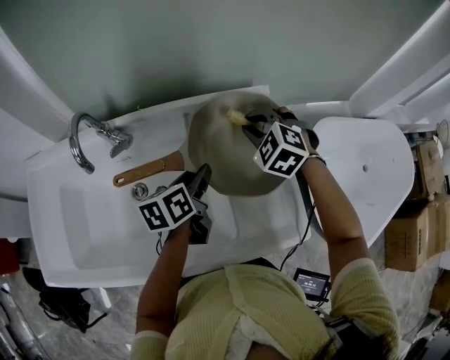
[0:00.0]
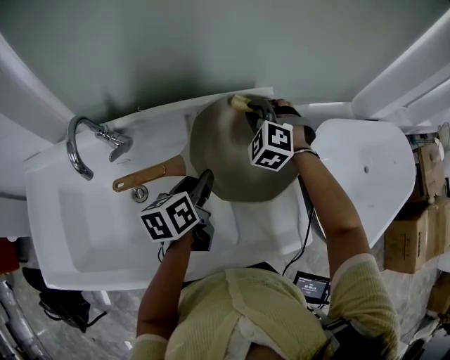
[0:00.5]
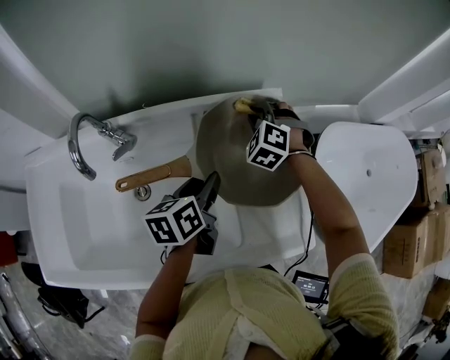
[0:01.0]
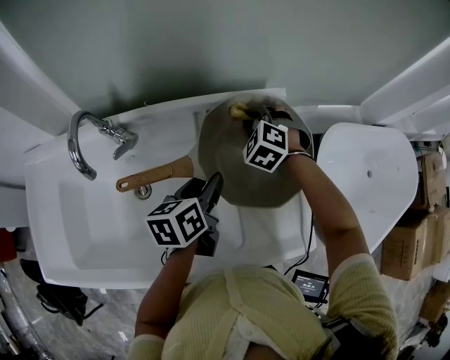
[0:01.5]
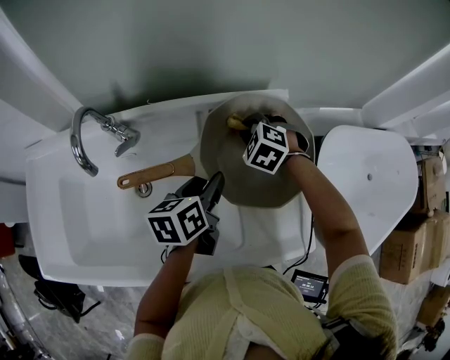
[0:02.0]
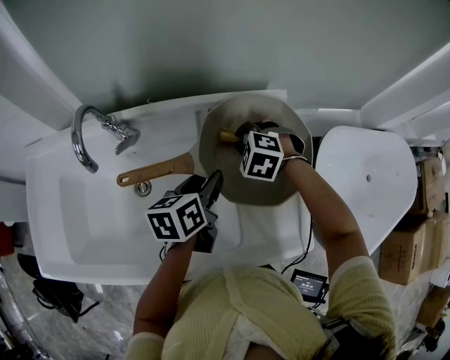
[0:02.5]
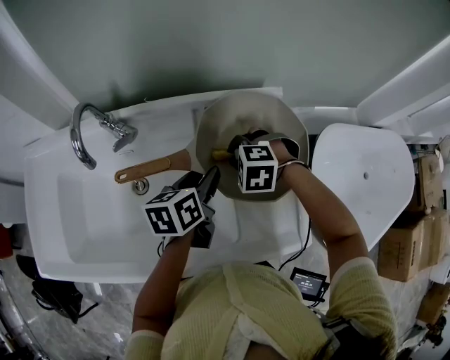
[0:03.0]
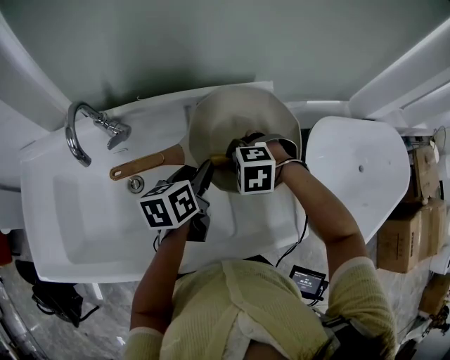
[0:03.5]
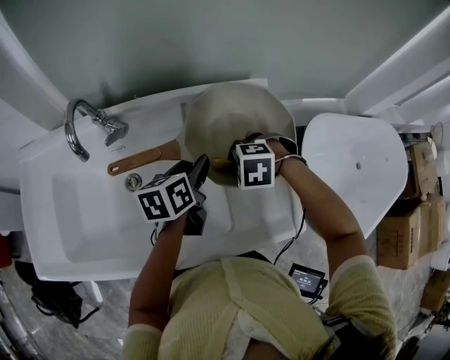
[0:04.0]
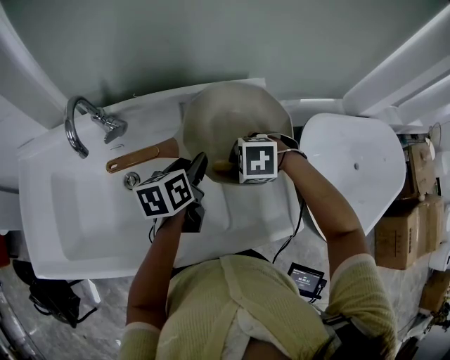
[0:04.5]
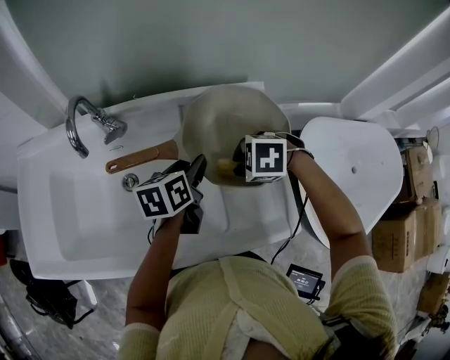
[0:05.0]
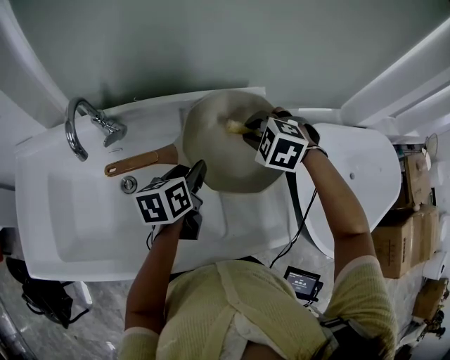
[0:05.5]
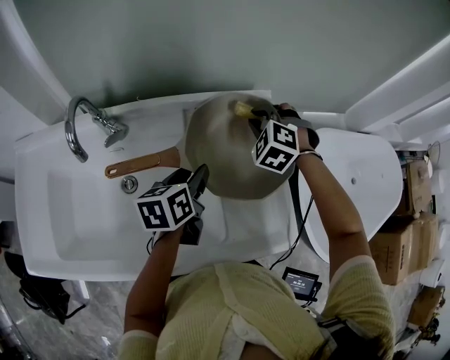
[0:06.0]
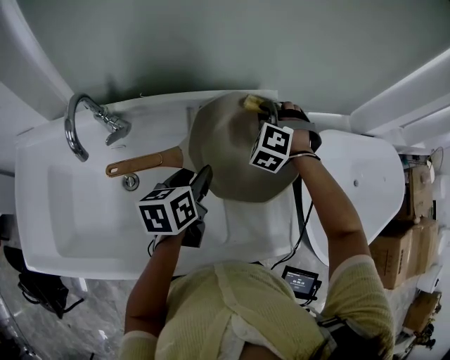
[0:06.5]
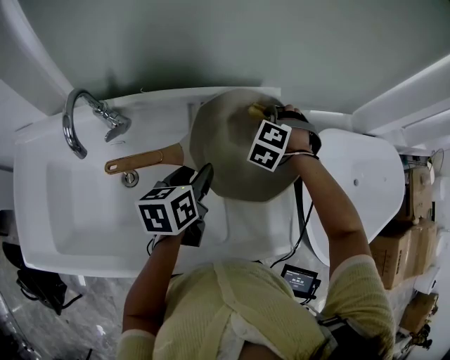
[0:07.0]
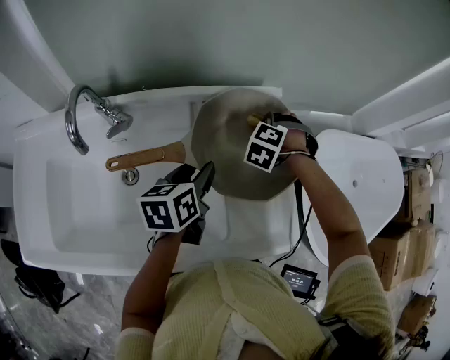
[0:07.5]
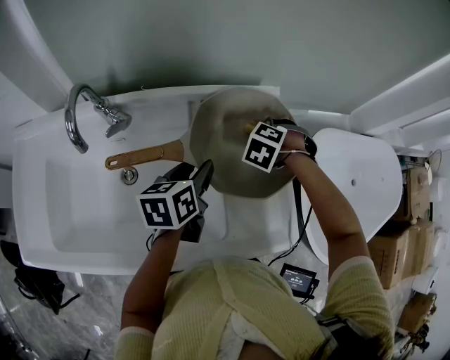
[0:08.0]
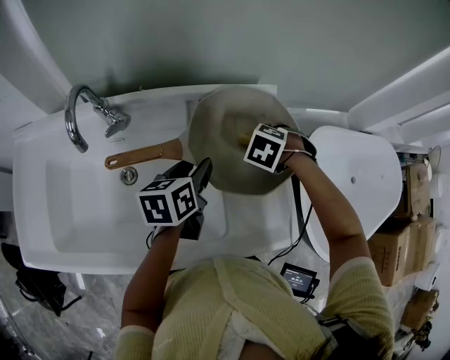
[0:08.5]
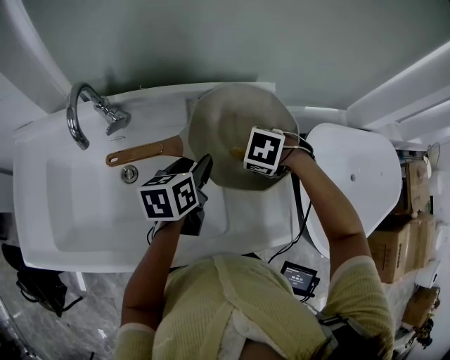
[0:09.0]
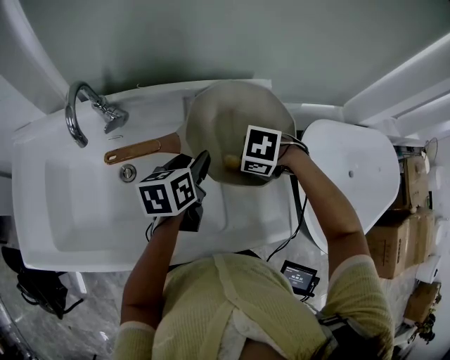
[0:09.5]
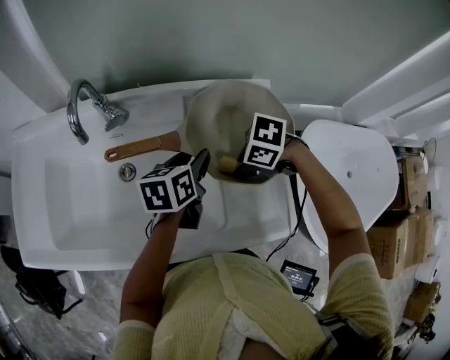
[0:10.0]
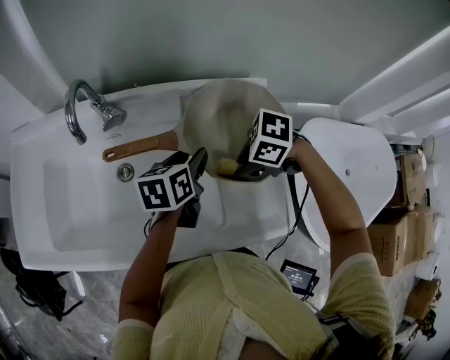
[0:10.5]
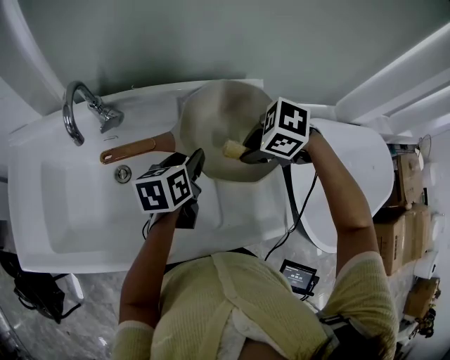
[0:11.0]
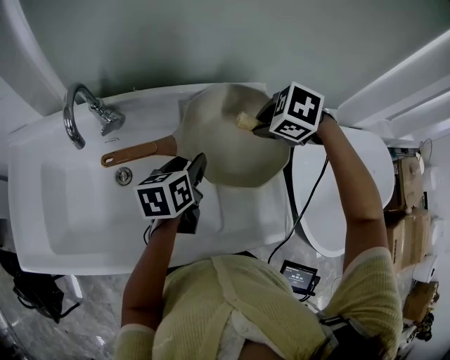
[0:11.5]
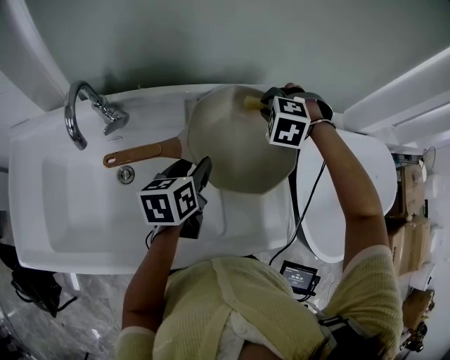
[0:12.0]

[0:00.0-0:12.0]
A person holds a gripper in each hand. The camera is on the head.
0:00.0 to 0:02.0: The right gripper goes about 10 cm downward.
0:02.0 to 0:04.0: The right gripper shifts by about 15 cm, and rotates some 30 degrees.
0:04.0 to 0:06.0: The right gripper shifts by some 20 cm, and rotates roughly 40 degrees.
0:06.0 to 0:08.0: The right gripper is displaced downward by roughly 10 cm, and turns by some 30 degrees.
0:08.0 to 0:10.0: The right gripper shifts by roughly 15 cm, and rotates roughly 50 degrees.
0:10.0 to 0:12.0: The right gripper changes place by roughly 20 cm, and rotates roughly 60 degrees.

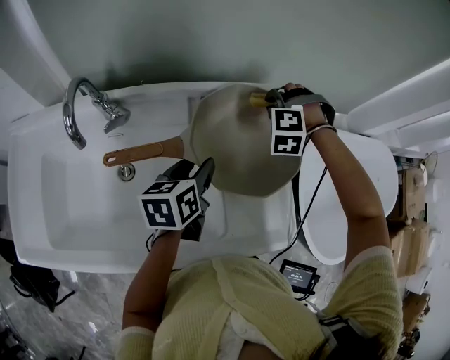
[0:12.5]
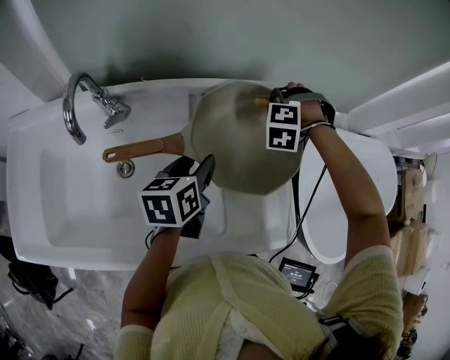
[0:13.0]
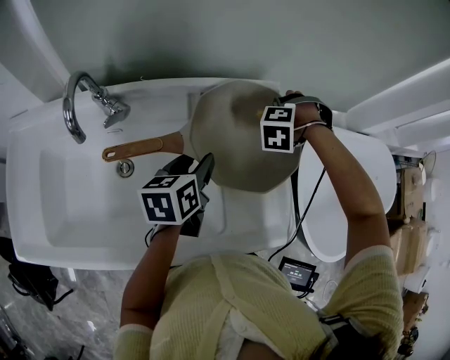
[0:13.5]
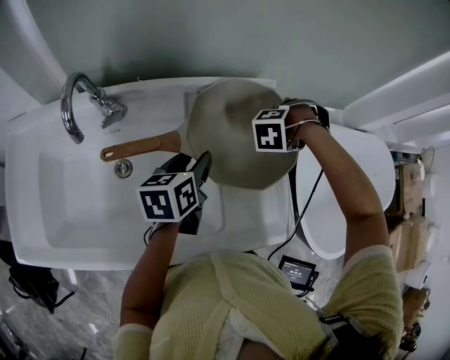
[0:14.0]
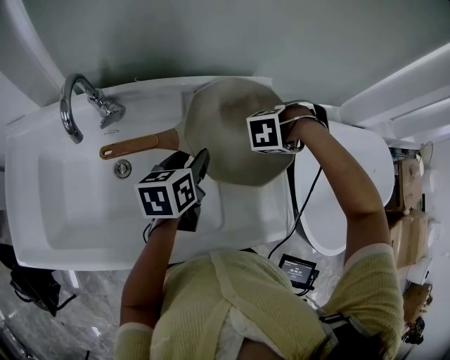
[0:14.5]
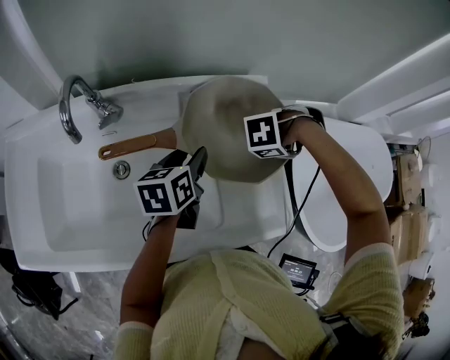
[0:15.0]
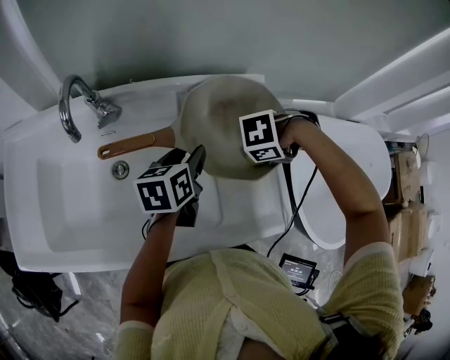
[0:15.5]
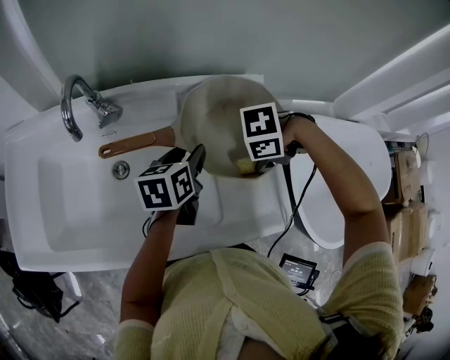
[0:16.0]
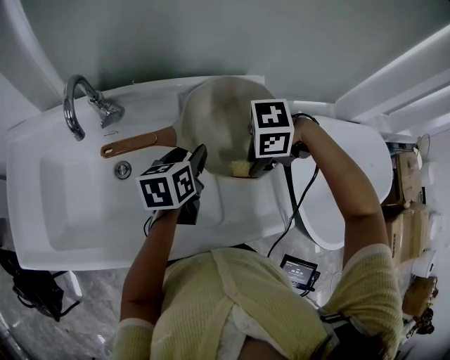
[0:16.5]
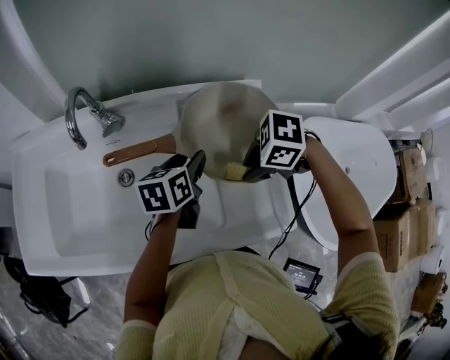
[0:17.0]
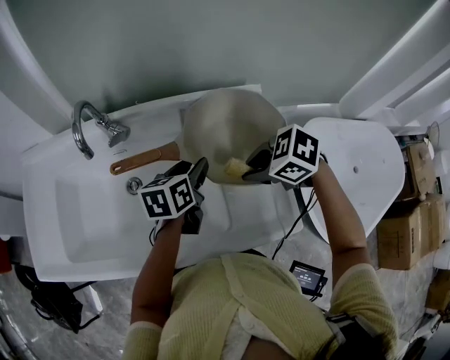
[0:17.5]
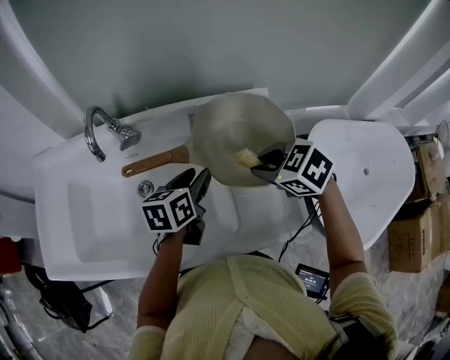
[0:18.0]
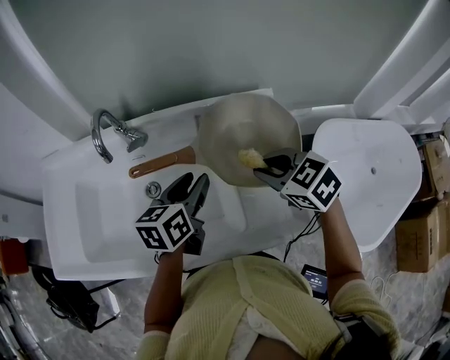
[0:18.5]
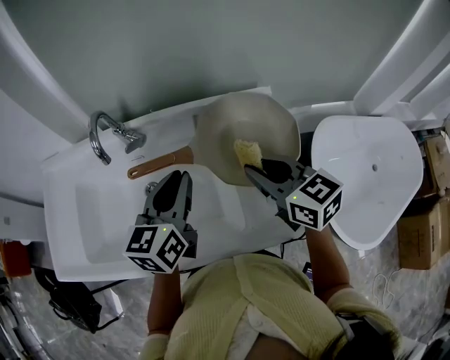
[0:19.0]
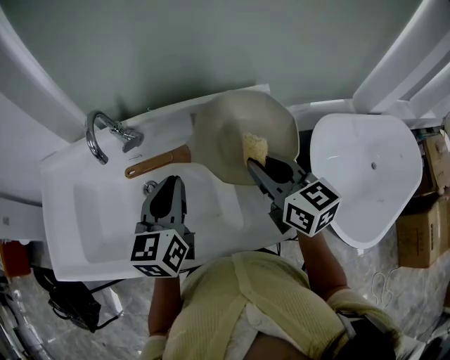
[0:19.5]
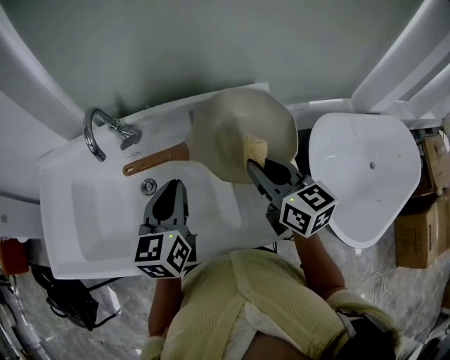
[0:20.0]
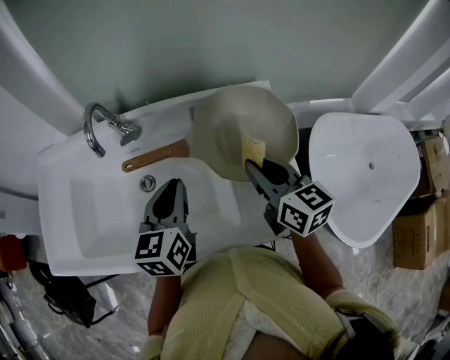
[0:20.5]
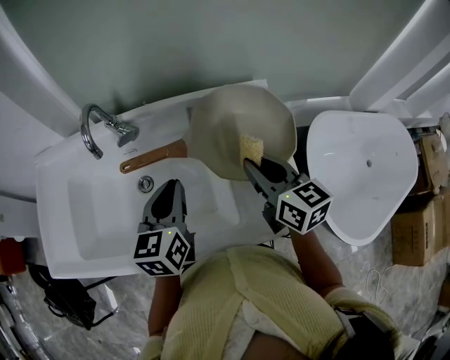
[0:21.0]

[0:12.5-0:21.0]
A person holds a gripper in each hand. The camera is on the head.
0:12.5 to 0:14.5: The right gripper changes place by roughly 15 cm, and turns by approximately 40 degrees.
0:14.5 to 0:16.5: The right gripper moves approximately 15 cm, and rotates roughly 40 degrees.
0:16.5 to 0:19.0: The grippers both shift upward by approximately 10 cm. The left gripper swivels about 20 degrees, and closes its fingers; the right gripper tips its fingers upward by approximately 40 degrees.
0:19.0 to 0:21.0: The grippers make only small movements.

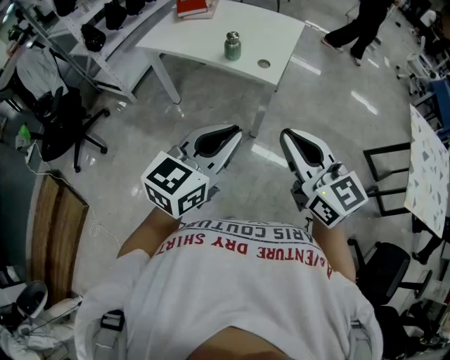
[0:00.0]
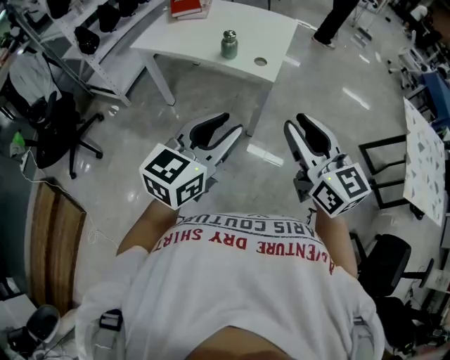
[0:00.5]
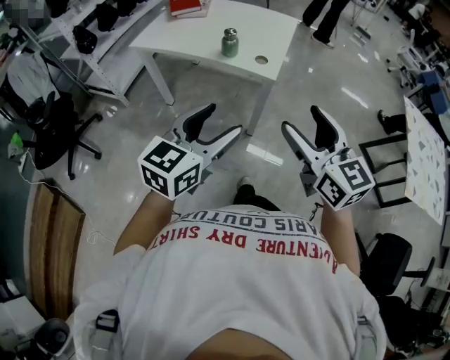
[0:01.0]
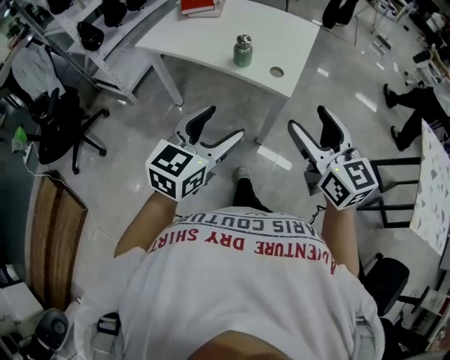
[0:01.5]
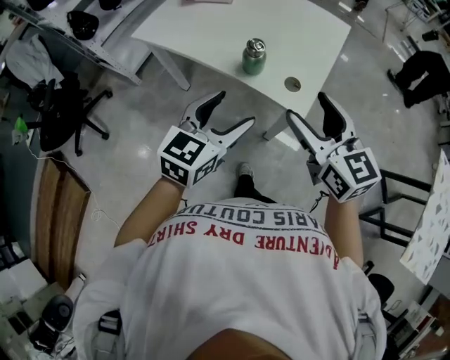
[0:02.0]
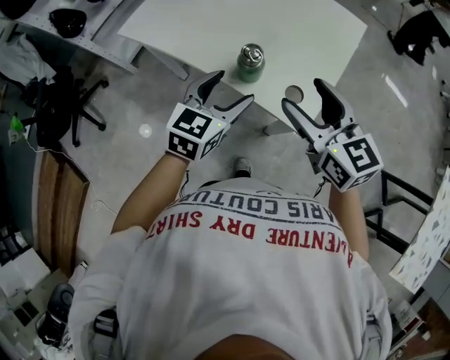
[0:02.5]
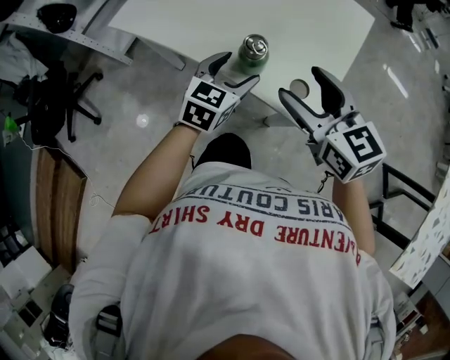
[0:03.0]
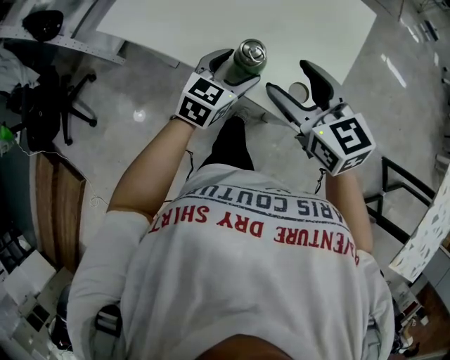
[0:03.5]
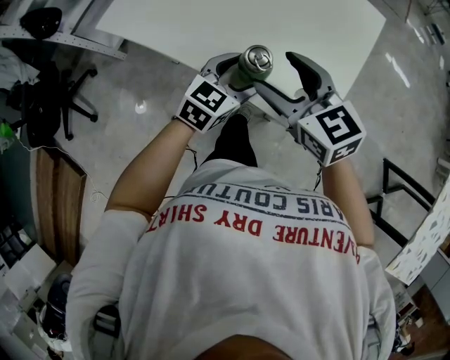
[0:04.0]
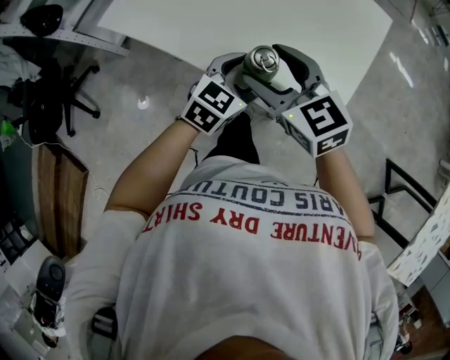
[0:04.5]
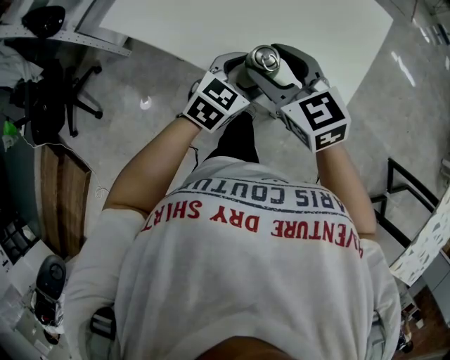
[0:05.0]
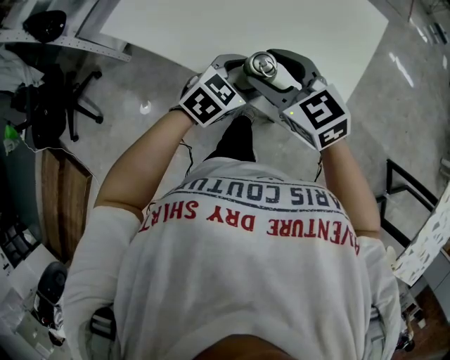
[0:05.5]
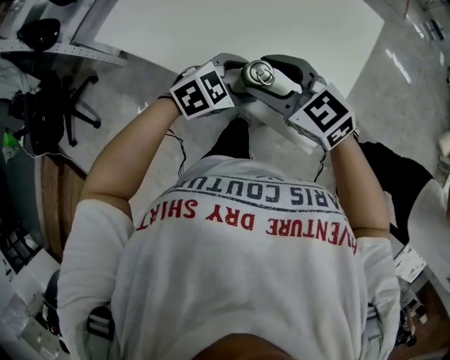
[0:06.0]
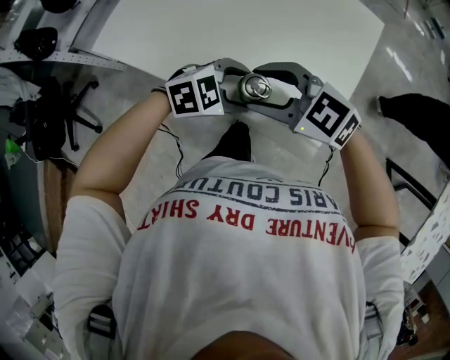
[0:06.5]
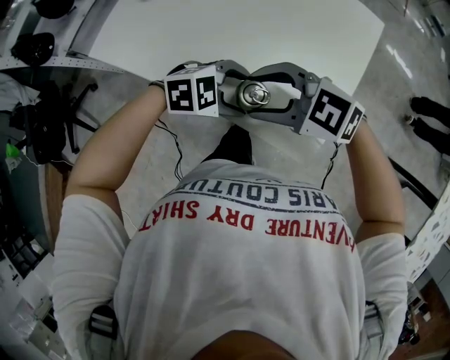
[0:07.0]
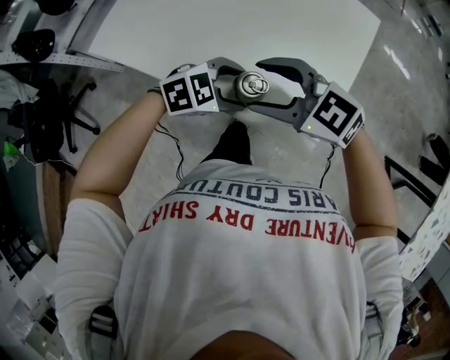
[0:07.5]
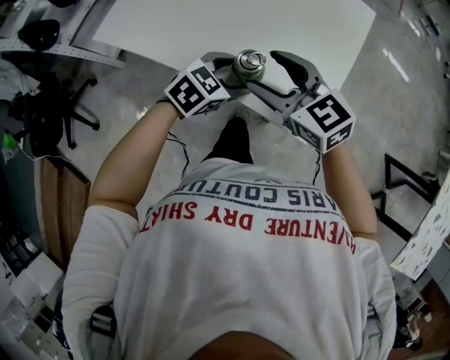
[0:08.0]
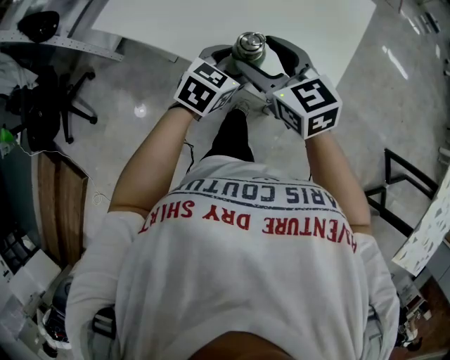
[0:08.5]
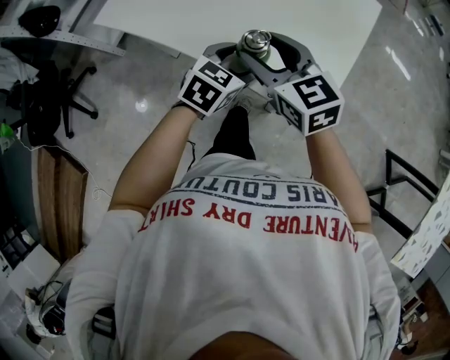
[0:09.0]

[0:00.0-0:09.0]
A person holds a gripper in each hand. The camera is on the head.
0:00.0 to 0:02.0: The right gripper travels forward by about 30 cm, and opens up, while the left gripper heads forward and downward, covering some 30 cm, and opens its fingers.
0:02.0 to 0:04.5: The left gripper heads forward and downward, covering some 25 cm. Meanwhile the right gripper travels forward, downward and to the left by some 25 cm.
0:04.5 to 0:07.0: The left gripper swivels roughly 50 degrees. Meanwhile the right gripper swivels approximately 40 degrees.
0:07.0 to 0:09.0: The left gripper swivels about 50 degrees. The right gripper swivels some 50 degrees.
